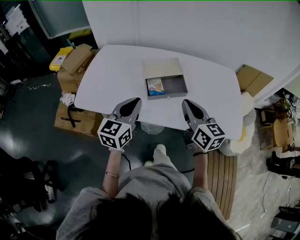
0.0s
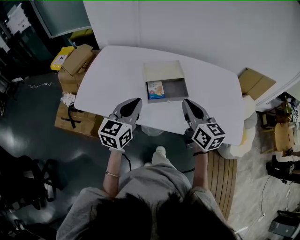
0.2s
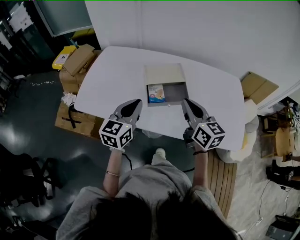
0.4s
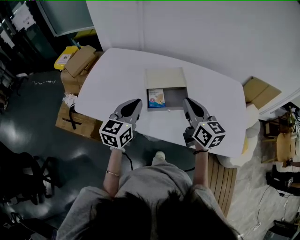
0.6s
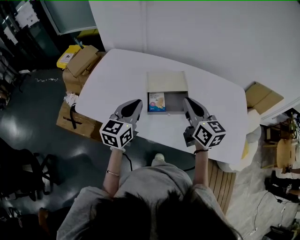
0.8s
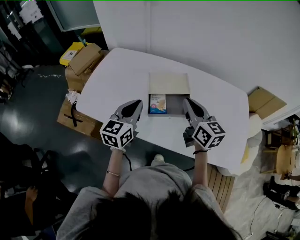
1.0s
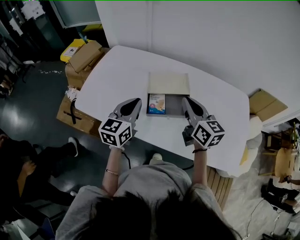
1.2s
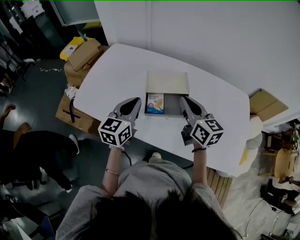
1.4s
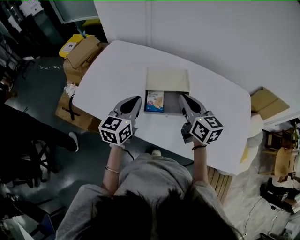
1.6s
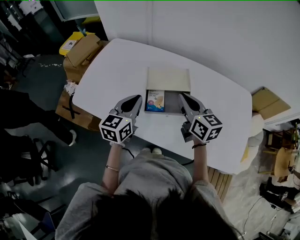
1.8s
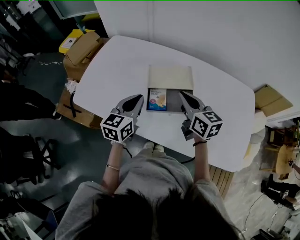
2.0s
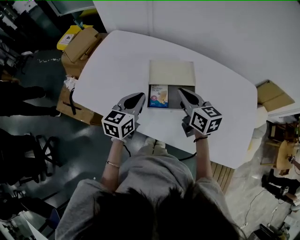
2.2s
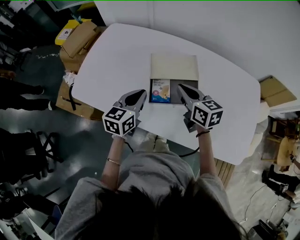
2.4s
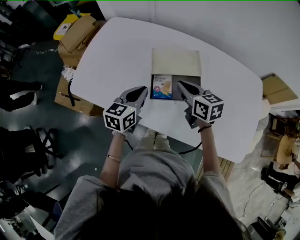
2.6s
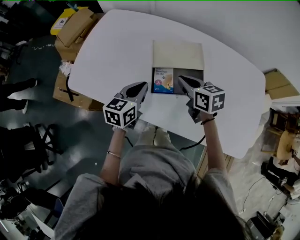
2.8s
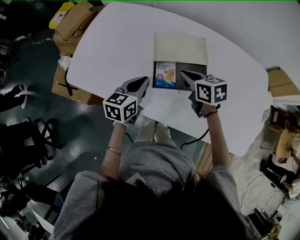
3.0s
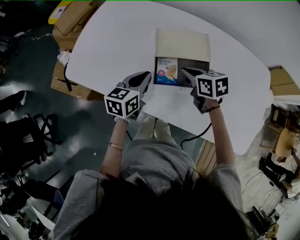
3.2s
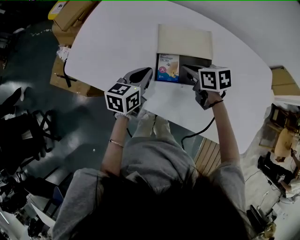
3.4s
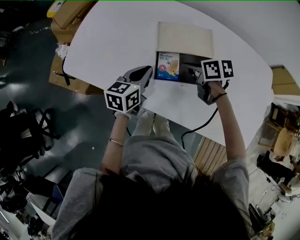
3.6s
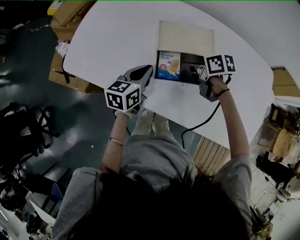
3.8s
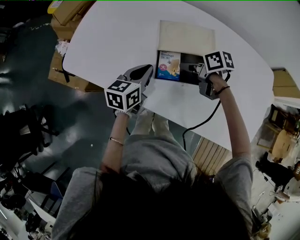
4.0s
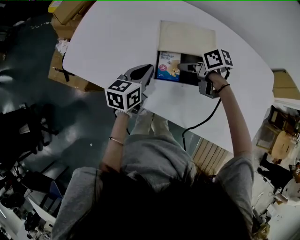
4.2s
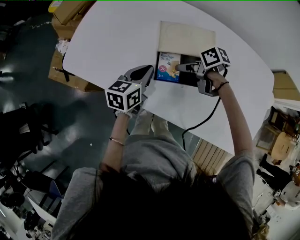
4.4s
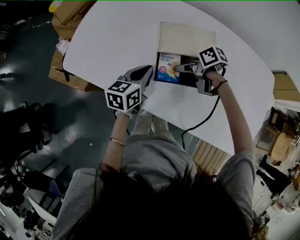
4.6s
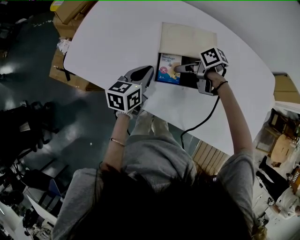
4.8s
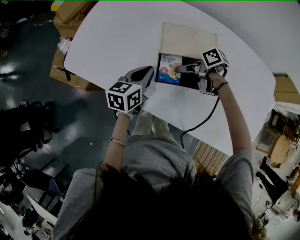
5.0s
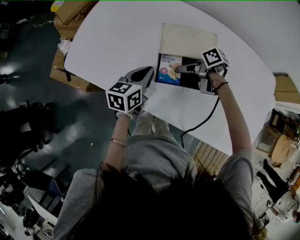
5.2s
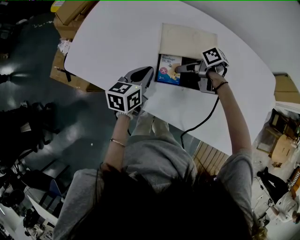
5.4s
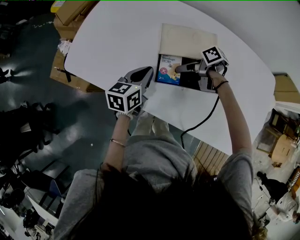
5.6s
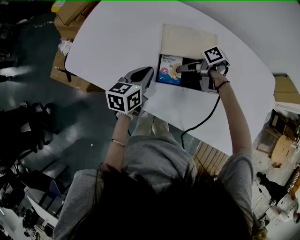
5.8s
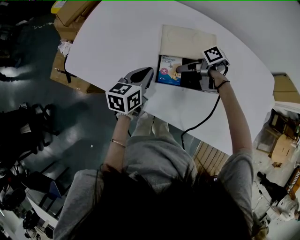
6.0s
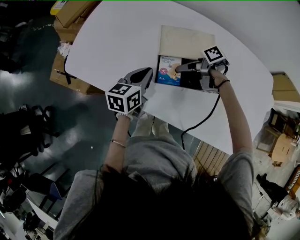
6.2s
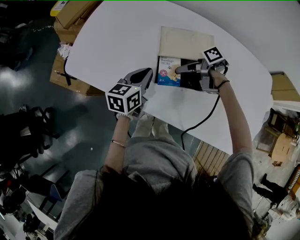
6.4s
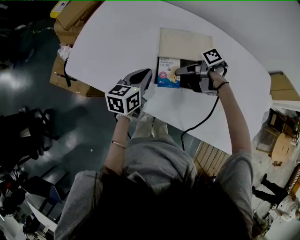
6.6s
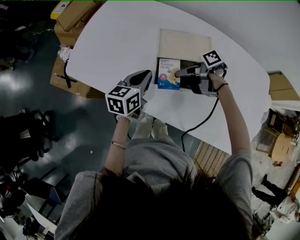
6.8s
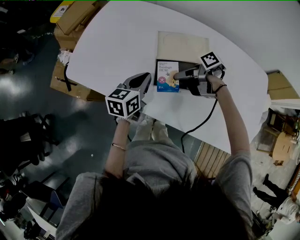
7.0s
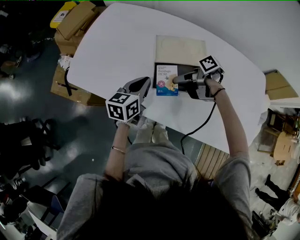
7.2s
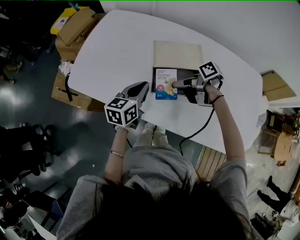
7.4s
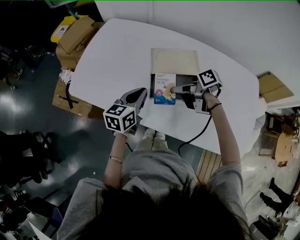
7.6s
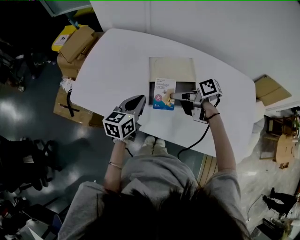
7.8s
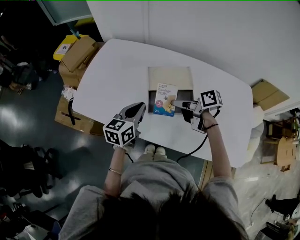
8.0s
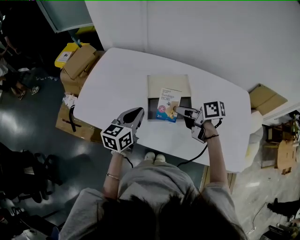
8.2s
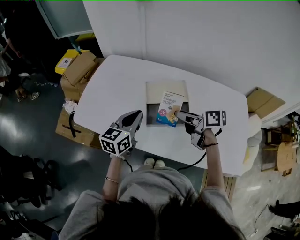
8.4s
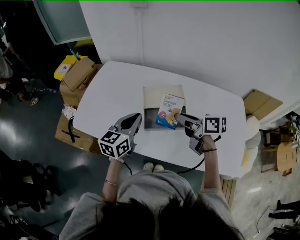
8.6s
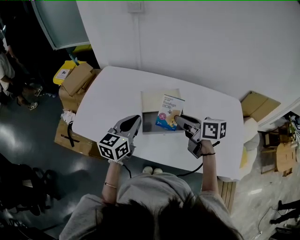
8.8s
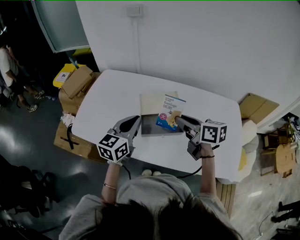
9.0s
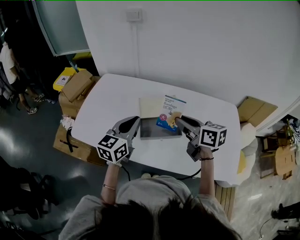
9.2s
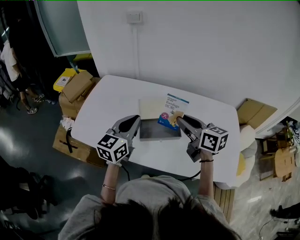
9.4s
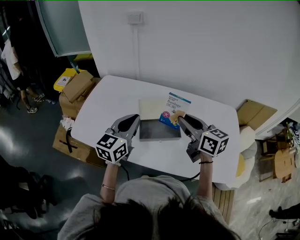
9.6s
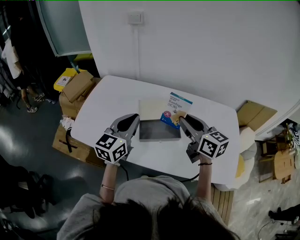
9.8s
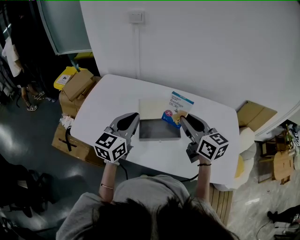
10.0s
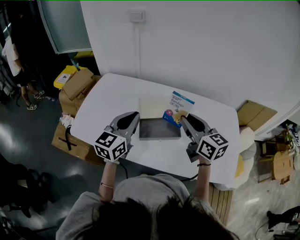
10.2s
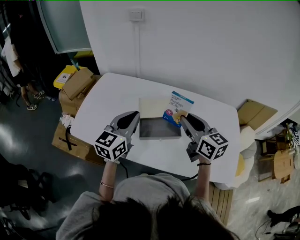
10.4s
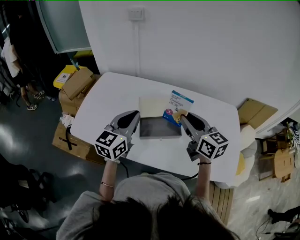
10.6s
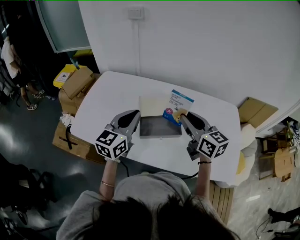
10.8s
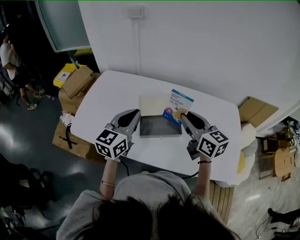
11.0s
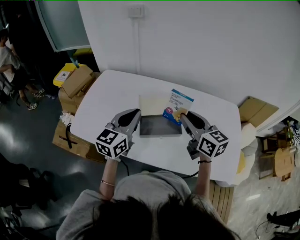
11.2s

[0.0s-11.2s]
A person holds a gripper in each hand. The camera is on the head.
0.0s to 1.6s: Both grippers travel together forward, approximately 15 cm.
1.6s to 3.2s: The grippers both shift downward by approximately 15 cm. The right gripper angles its fingers downward, by some 30 degrees.
3.2s to 4.8s: The right gripper heads downward, covering about 5 cm, swivels roughly 50 degrees, and opens.
4.8s to 6.4s: There are only small adjustments of the grippers.
6.4s to 8.0s: Both grippers move upward, about 10 cm. The right gripper turns by some 30 degrees.
8.0s to 9.6s: The right gripper travels upward and to the right by some 15 cm, and turns by some 60 degrees. Meanwhile the left gripper is displaced upward by roughly 15 cm.
9.6s to 11.2s: The grippers move only a little.

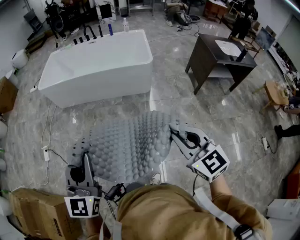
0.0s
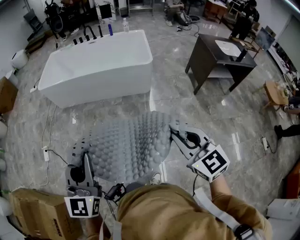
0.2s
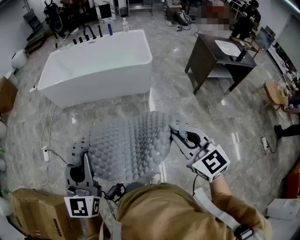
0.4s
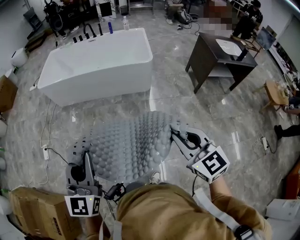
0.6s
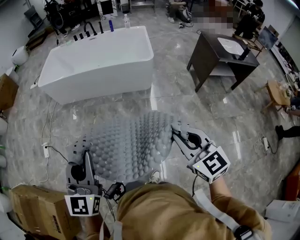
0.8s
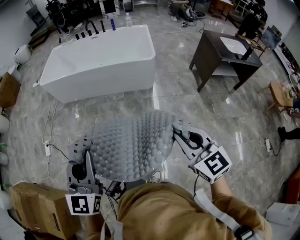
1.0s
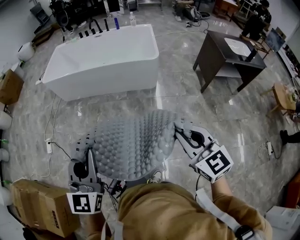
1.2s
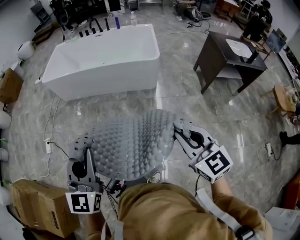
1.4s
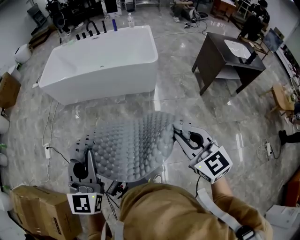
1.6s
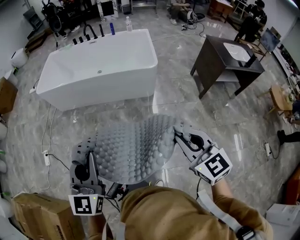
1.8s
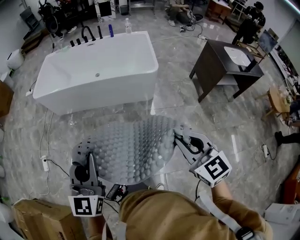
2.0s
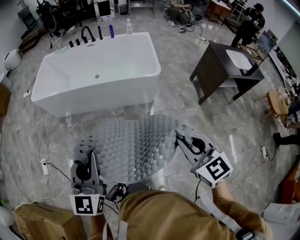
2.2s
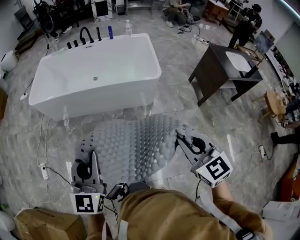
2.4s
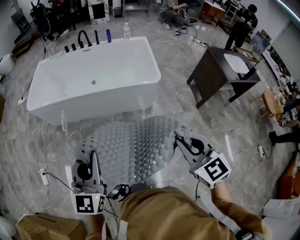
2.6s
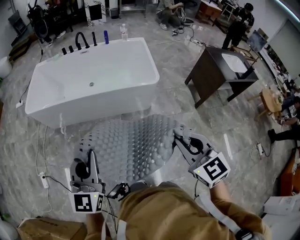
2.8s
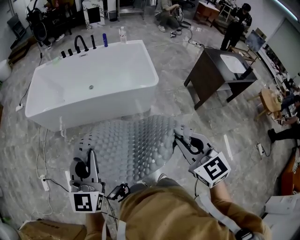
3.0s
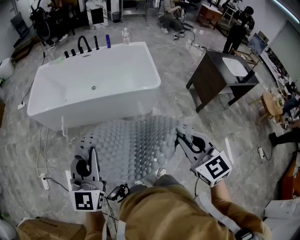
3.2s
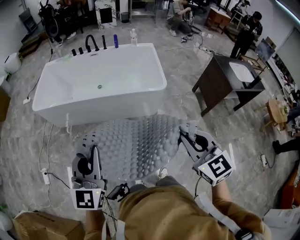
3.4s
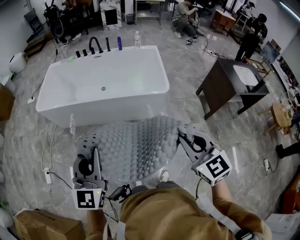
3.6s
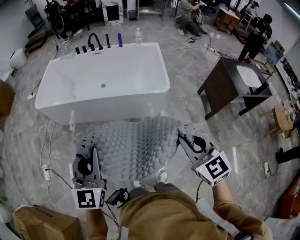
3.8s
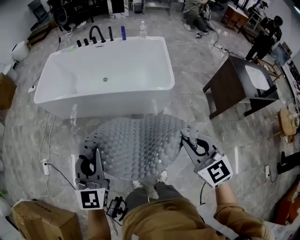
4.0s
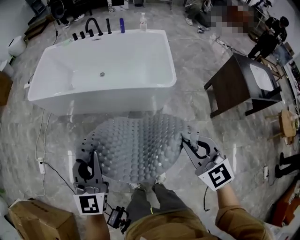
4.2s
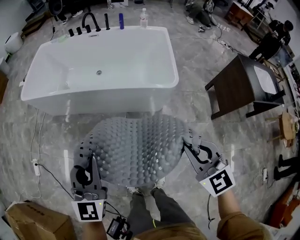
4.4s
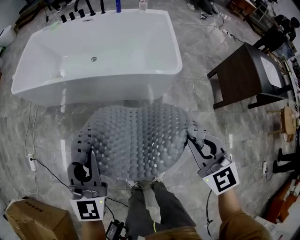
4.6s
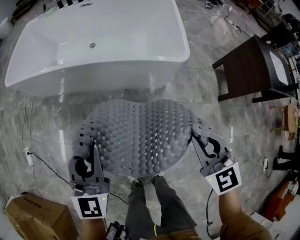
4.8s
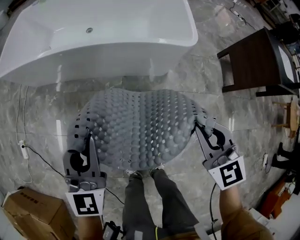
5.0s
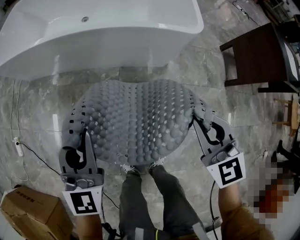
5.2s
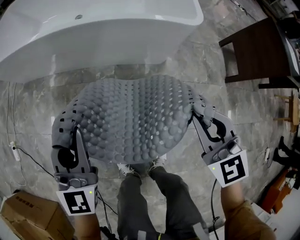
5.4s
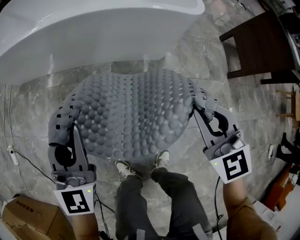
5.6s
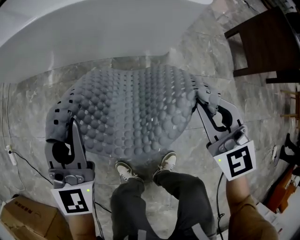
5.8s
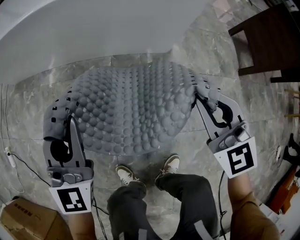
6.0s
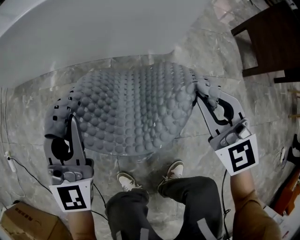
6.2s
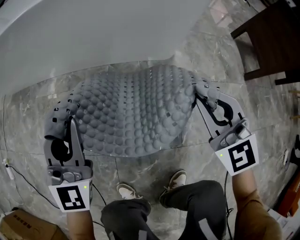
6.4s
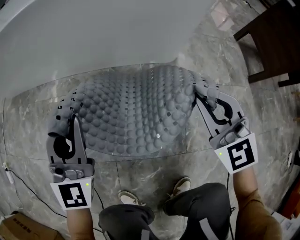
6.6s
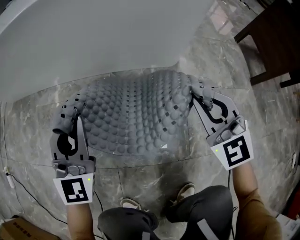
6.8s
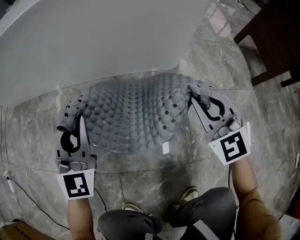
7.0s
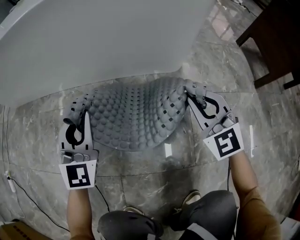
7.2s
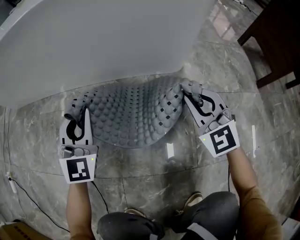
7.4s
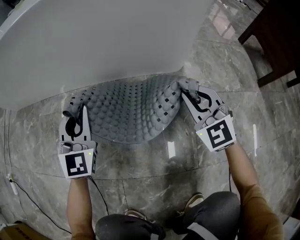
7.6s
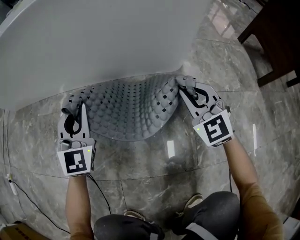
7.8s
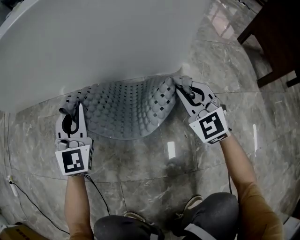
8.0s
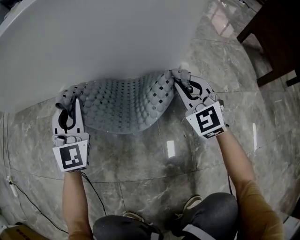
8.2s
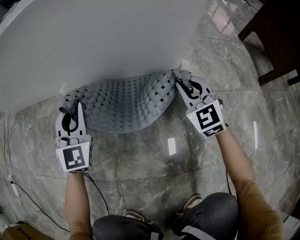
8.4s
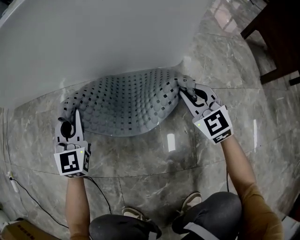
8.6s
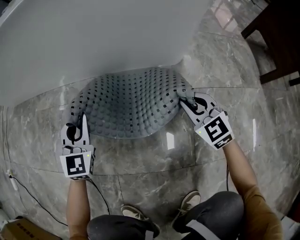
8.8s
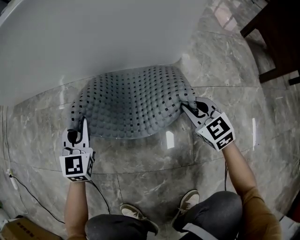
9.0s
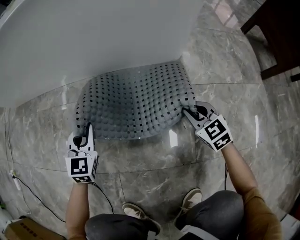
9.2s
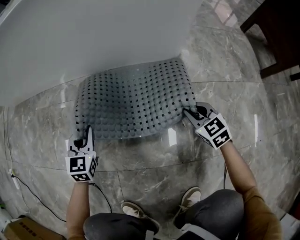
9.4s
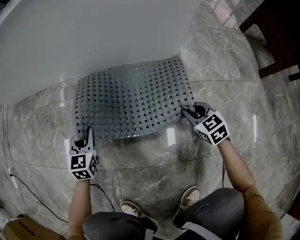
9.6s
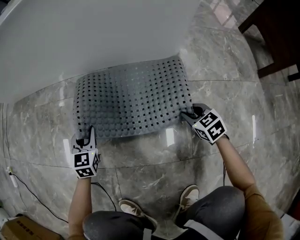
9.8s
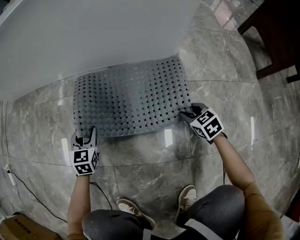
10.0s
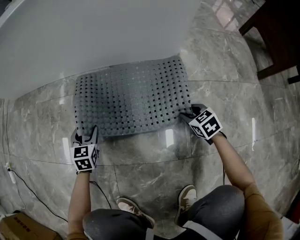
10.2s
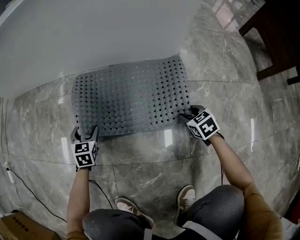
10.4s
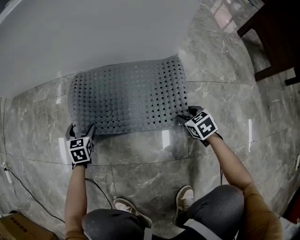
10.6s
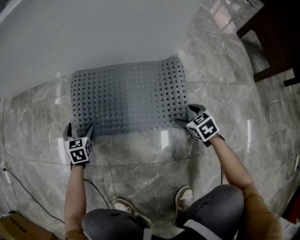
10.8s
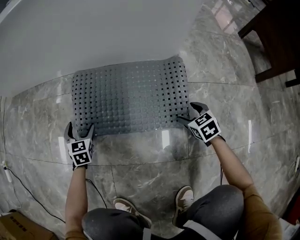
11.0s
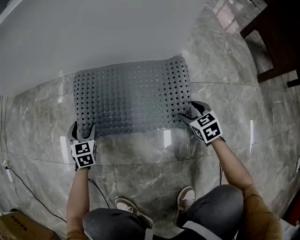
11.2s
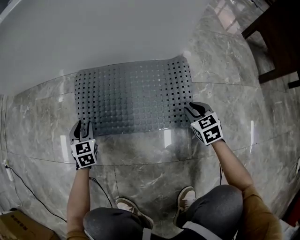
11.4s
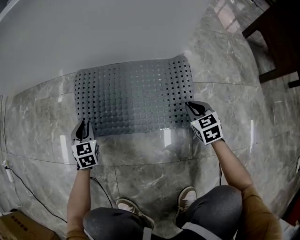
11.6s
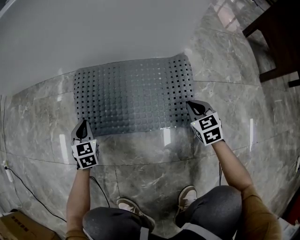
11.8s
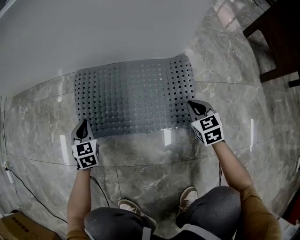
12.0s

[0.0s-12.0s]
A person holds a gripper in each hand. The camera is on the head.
0.0s to 1.6s: Both grippers move forward, approximately 5 cm.
1.6s to 3.0s: The grippers both shift forward by roughly 25 cm.
3.0s to 4.4s: The right gripper heads forward, downward and to the right, covering some 20 cm. Meanwhile the left gripper travels downward, forward and to the right by about 20 cm.
4.4s to 6.0s: The two grippers go approximately 40 cm downward.
6.0s to 7.6s: Both grippers travel together downward and forward, some 25 cm.
7.6s to 9.0s: Both grippers travel together downward, some 10 cm. The right gripper turns by approximately 20 degrees.
9.0s to 10.4s: The right gripper shifts about 15 cm downward and backward, and rotates about 30 degrees; the left gripper travels downward by approximately 15 cm, rotates approximately 30 degrees, and opens.
10.4s to 12.0s: The right gripper moves upward, some 5 cm, and closes its fingers, while the left gripper closes its fingers.

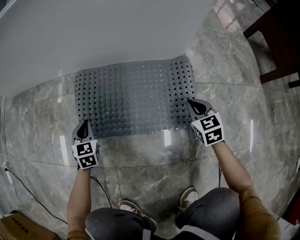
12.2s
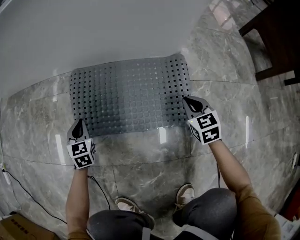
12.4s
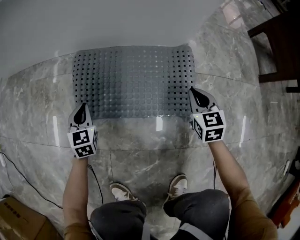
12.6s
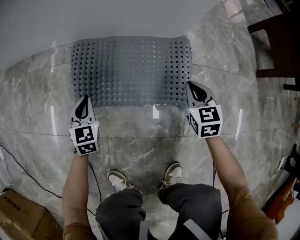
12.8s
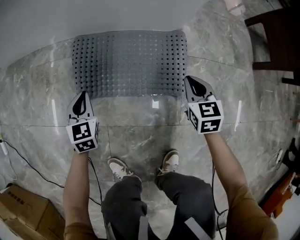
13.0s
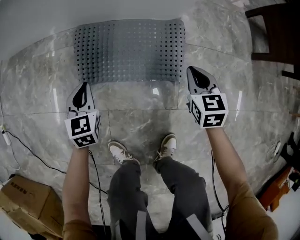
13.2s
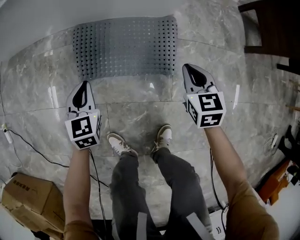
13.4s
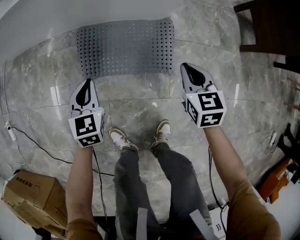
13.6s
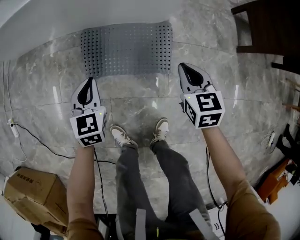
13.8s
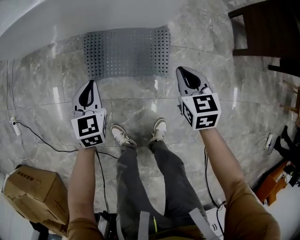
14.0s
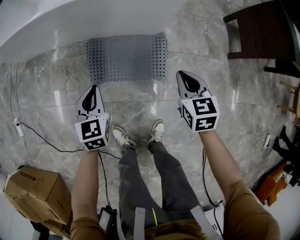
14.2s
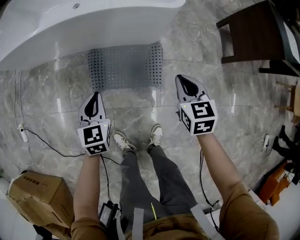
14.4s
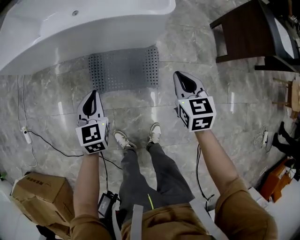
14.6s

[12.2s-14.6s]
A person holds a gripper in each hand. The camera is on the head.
12.2s to 13.4s: The two grippers go some 25 cm upward.
13.4s to 14.6s: Both grippers move upward, approximately 35 cm.
